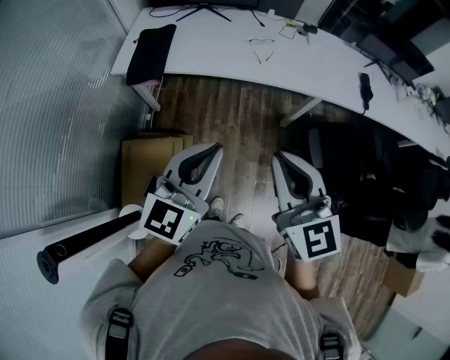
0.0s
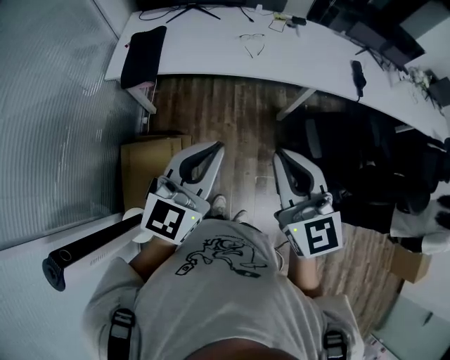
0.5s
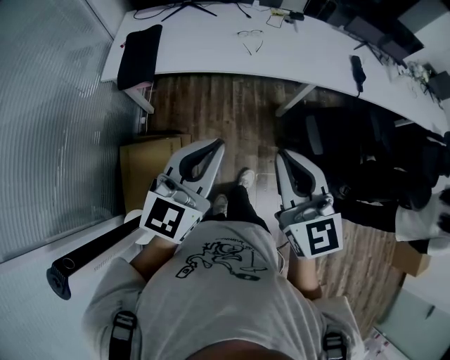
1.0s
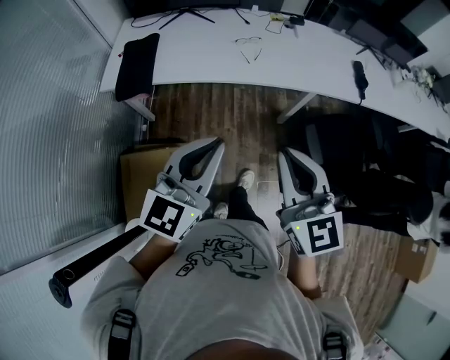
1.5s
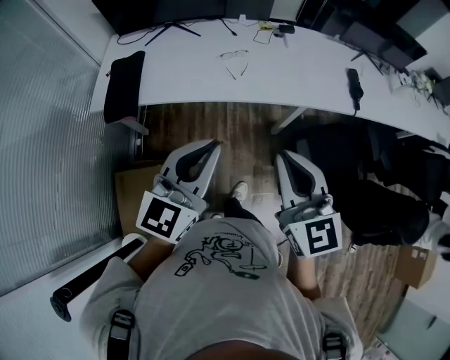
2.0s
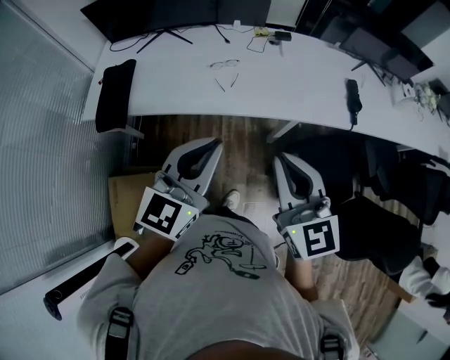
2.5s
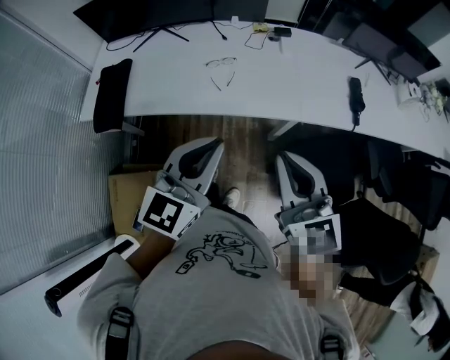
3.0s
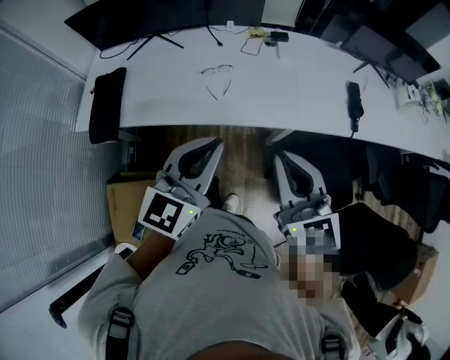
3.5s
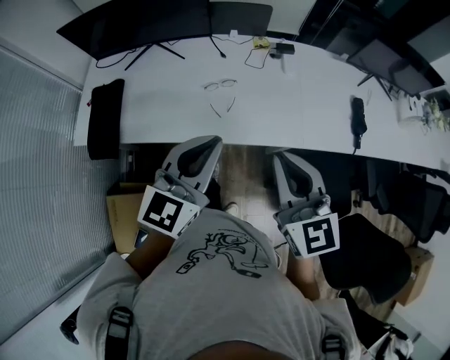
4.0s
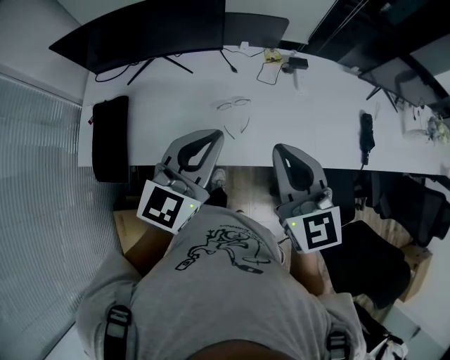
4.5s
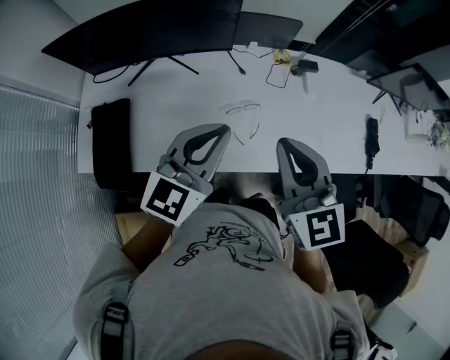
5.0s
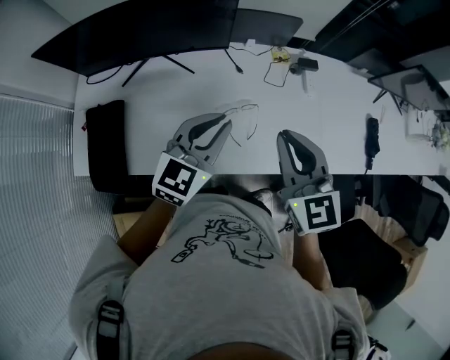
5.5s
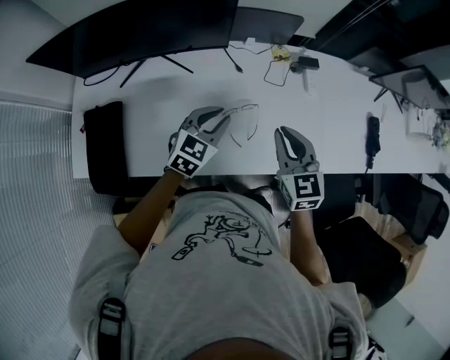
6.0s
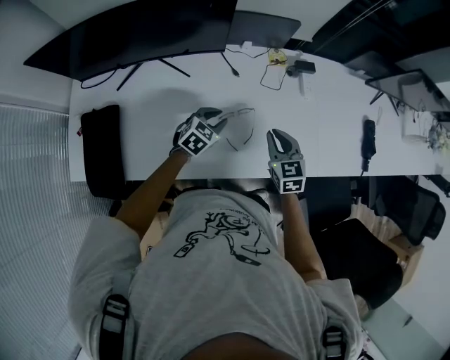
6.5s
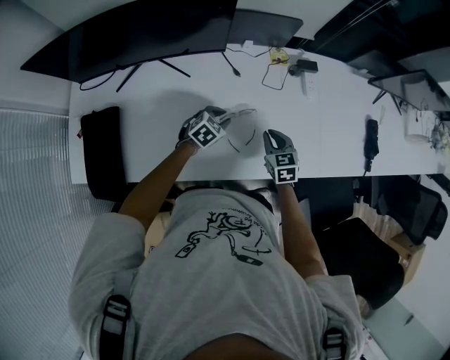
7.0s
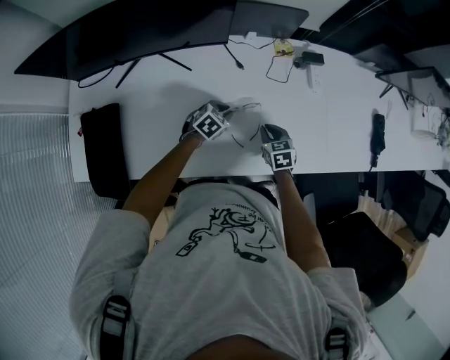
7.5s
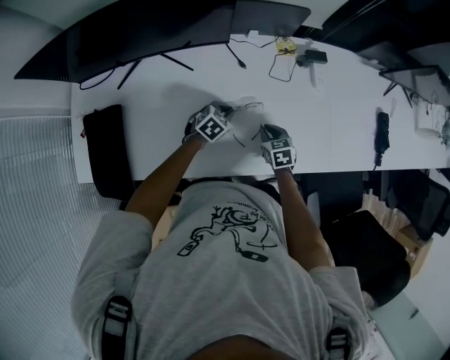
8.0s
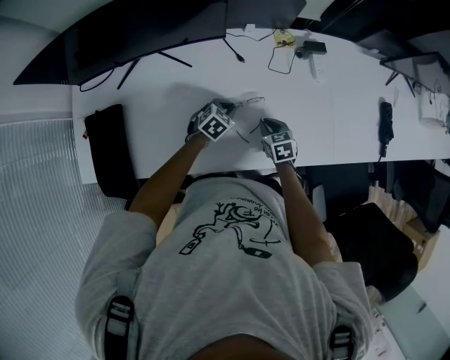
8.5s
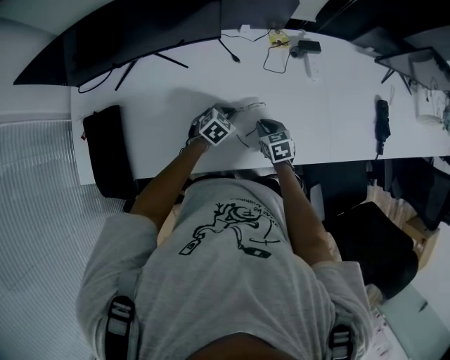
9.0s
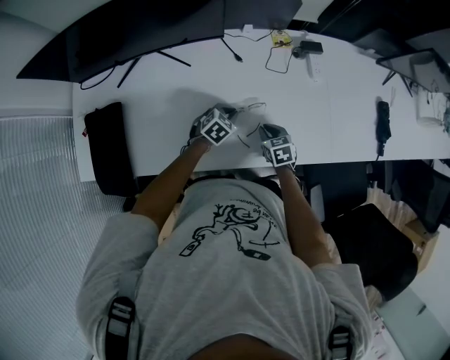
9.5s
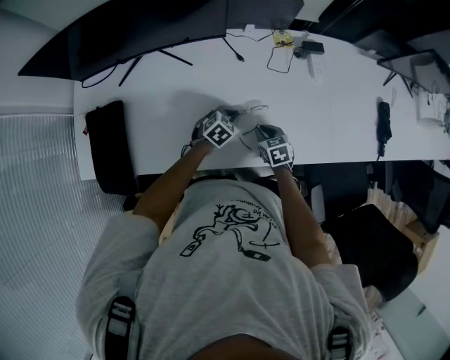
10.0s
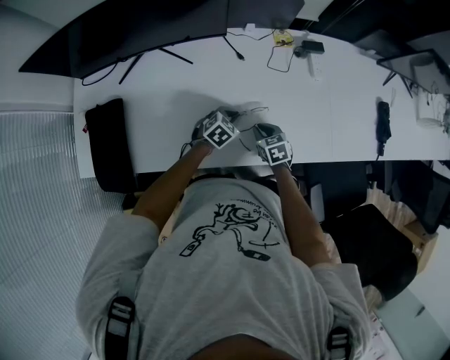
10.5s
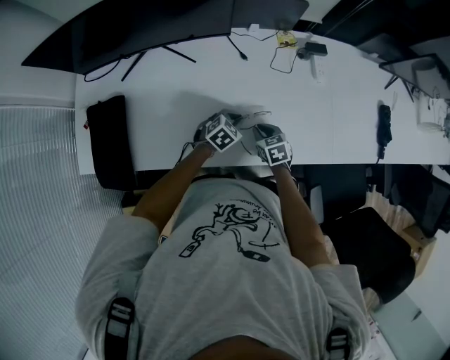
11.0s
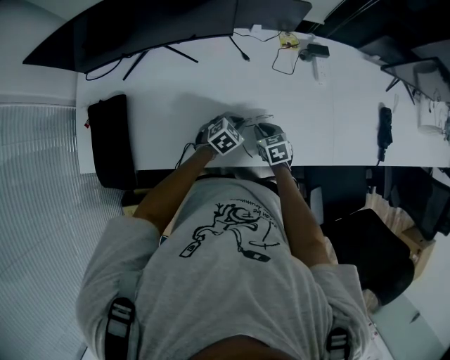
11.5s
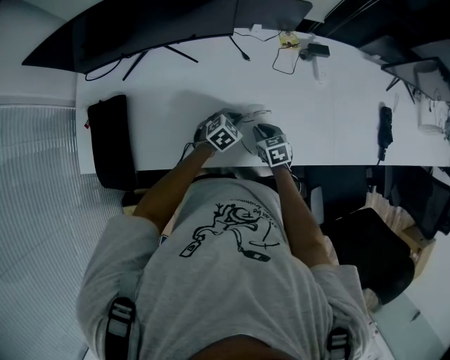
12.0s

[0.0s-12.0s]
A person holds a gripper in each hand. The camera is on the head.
0.0s to 2.0s: Both grippers move forward and to the right, roughly 20 cm.
2.0s to 4.0s: Both grippers travel together forward, some 25 cm.
4.0s to 6.0s: The two grippers go roughly 35 cm forward, downward and to the left. The left gripper swivels approximately 30 degrees.
6.0s to 8.0s: The grippers both shift downward by roughly 25 cm. The right gripper changes its angle by about 30 degrees. The left gripper rotates approximately 30 degrees.
8.0s to 10.0s: The right gripper ends up some 5 cm from where it was. Meanwhile the left gripper ends up about 5 cm from where it was.
10.0s to 12.0s: There are only small adjustments of the grippers.

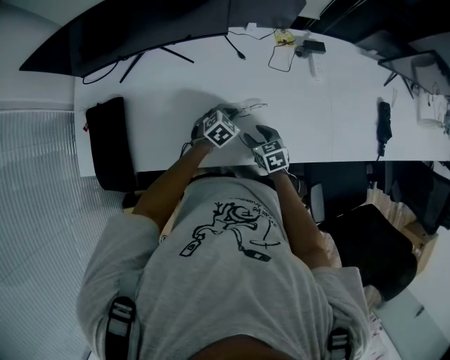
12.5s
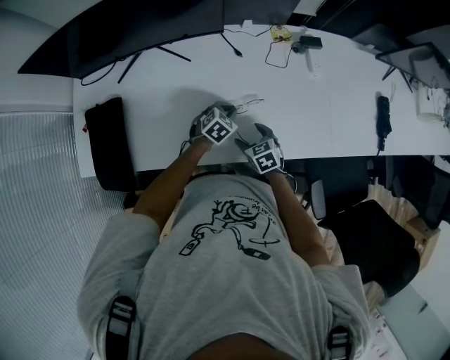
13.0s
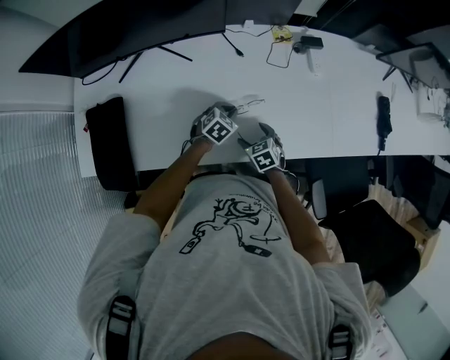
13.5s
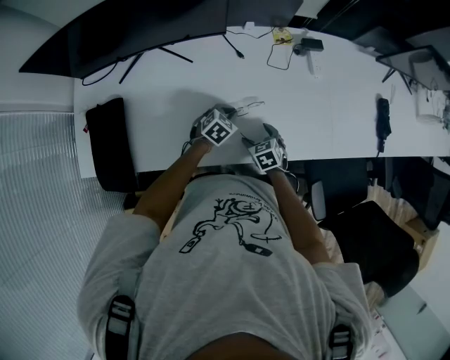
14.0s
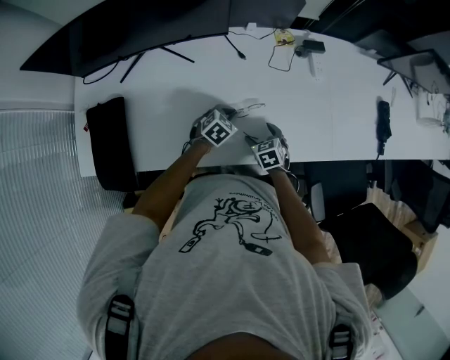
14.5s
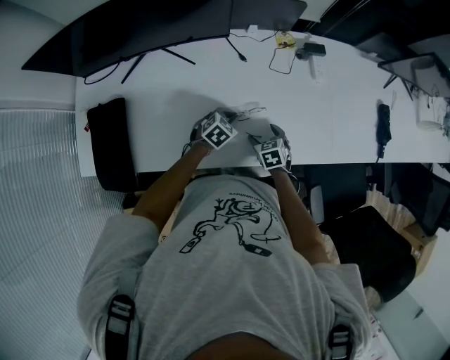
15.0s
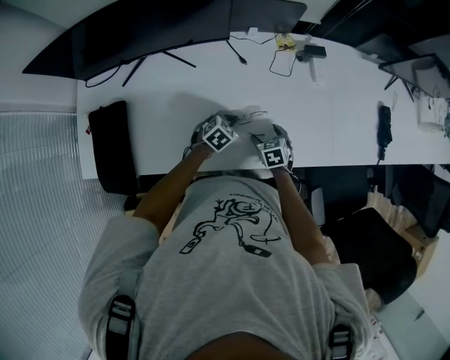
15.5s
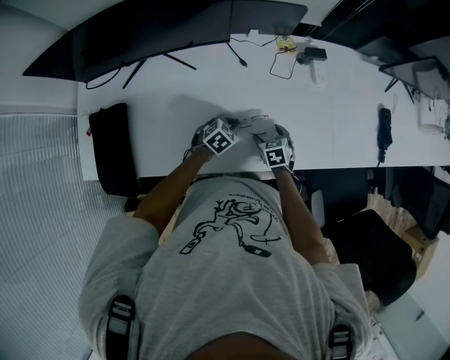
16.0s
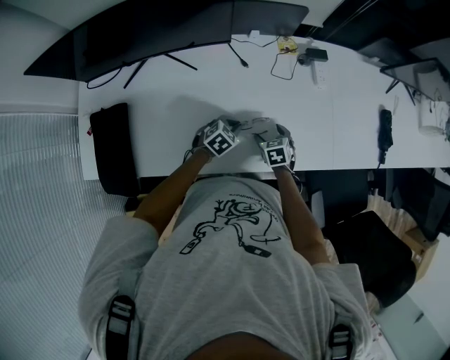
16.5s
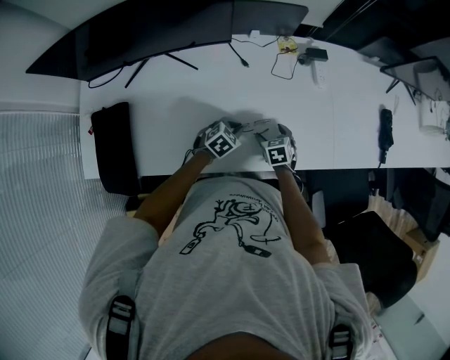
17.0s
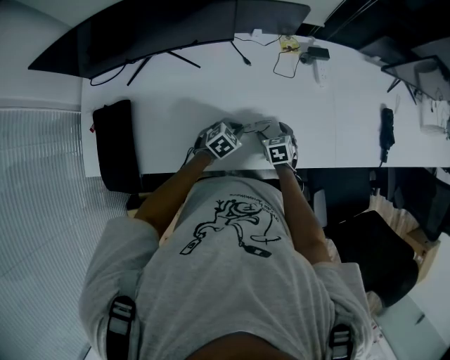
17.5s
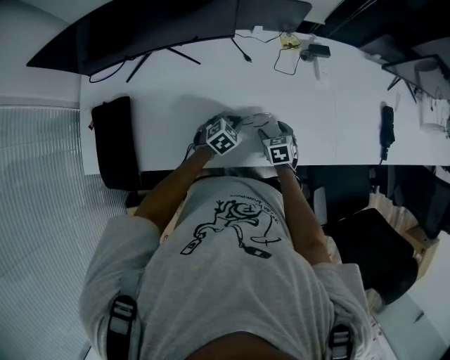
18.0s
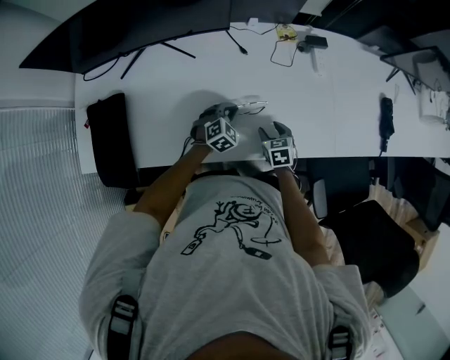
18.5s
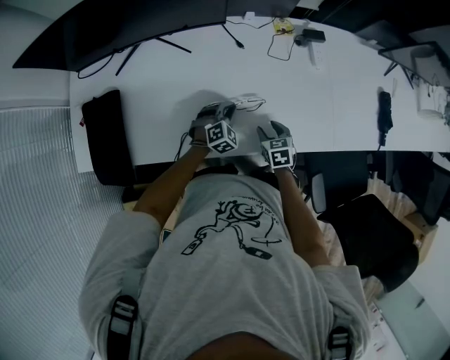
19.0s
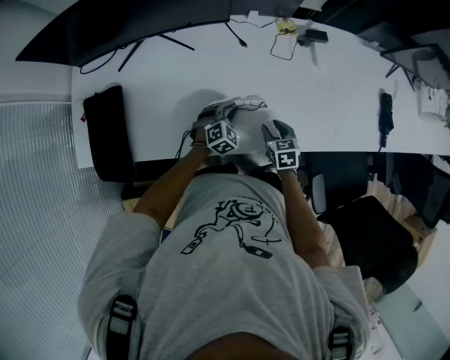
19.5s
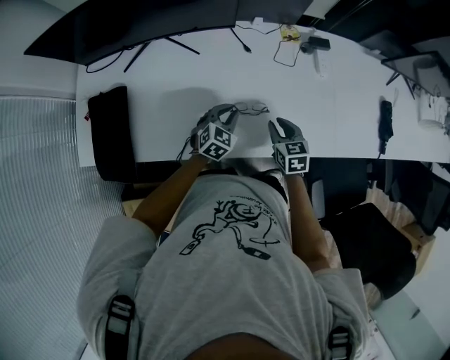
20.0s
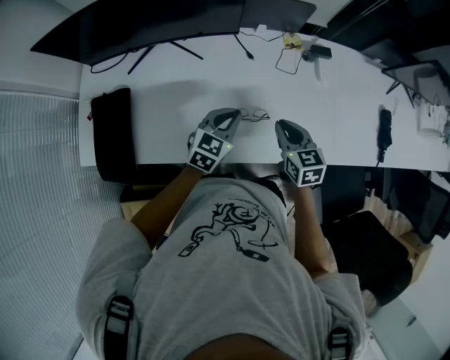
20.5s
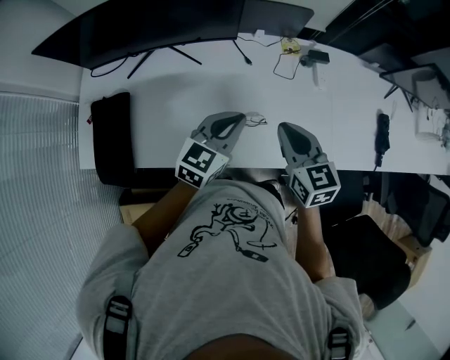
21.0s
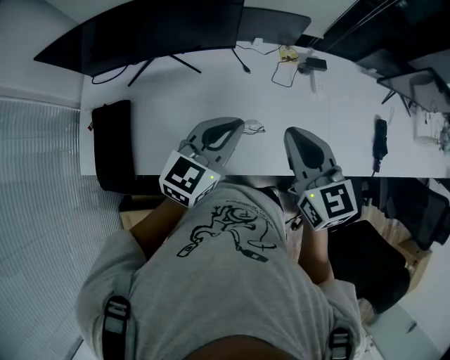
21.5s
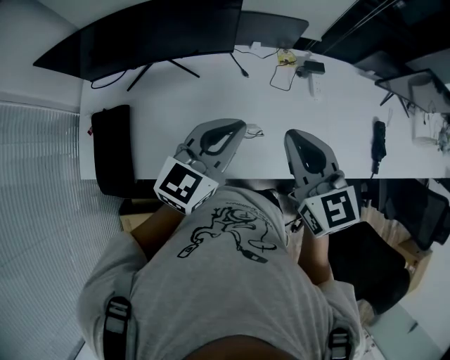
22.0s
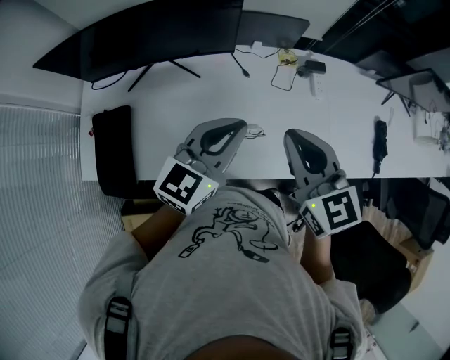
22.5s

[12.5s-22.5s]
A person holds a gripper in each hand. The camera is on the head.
12.5s to 14.5s: The right gripper opens.
14.5s to 16.5s: The right gripper shifts by roughly 5 cm.
16.5s to 18.5s: The left gripper swivels about 20 degrees; the right gripper closes.
18.5s to 20.5s: The grippers both shift upward by about 15 cm. The right gripper closes up, while the left gripper changes its angle by about 30 degrees.
20.5s to 22.5s: Both grippers travel together upward, roughly 20 cm. The left gripper swivels some 20 degrees.

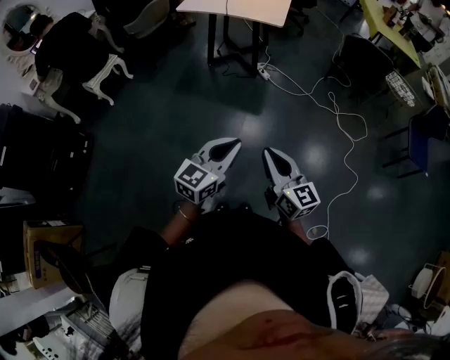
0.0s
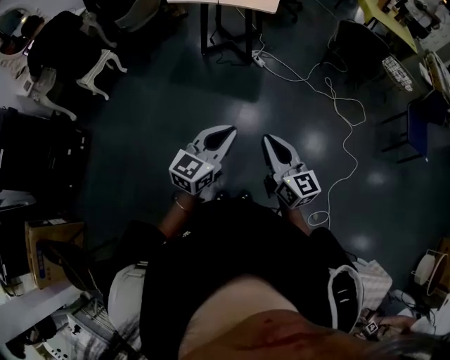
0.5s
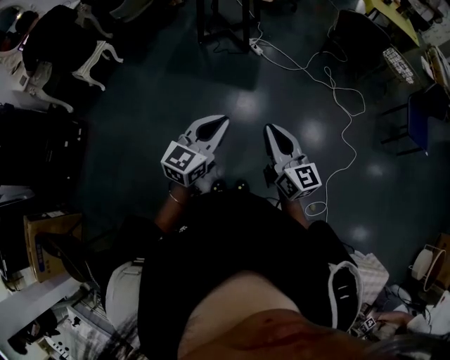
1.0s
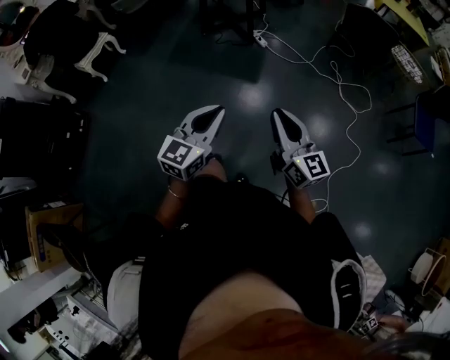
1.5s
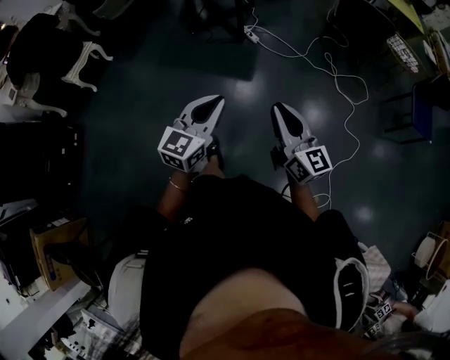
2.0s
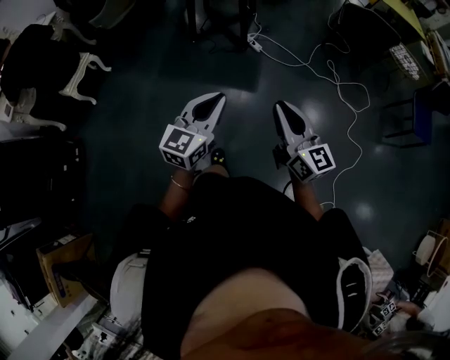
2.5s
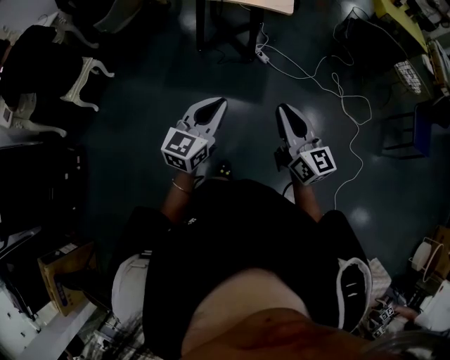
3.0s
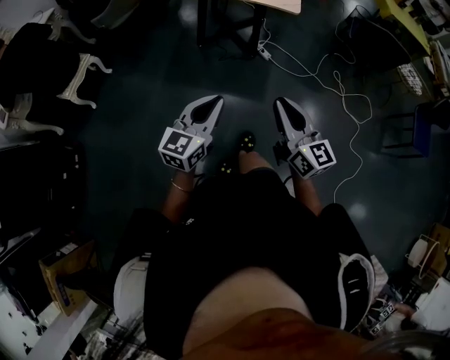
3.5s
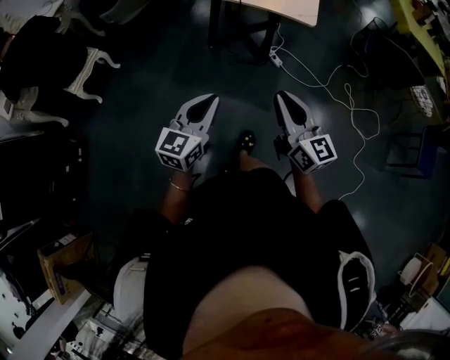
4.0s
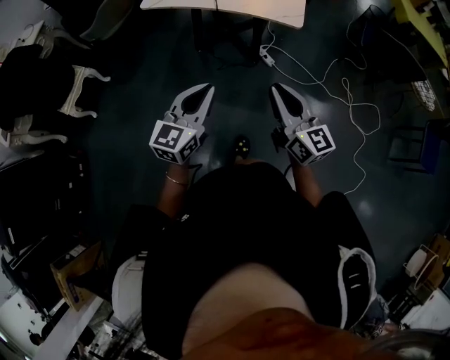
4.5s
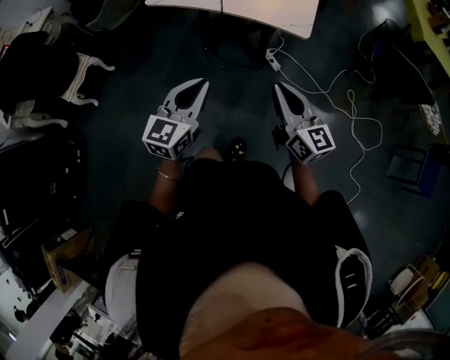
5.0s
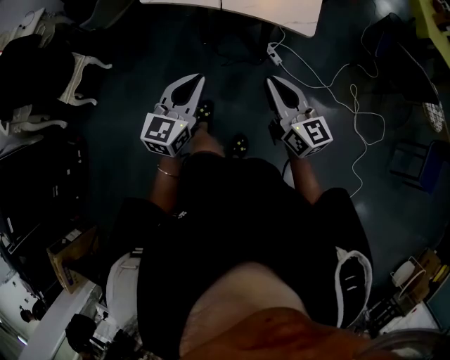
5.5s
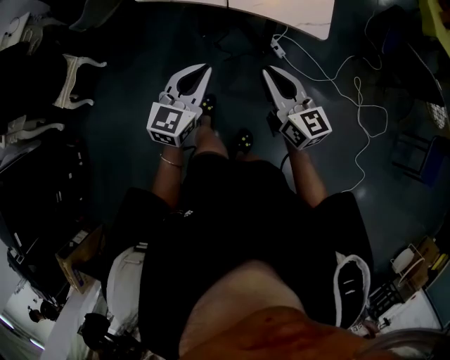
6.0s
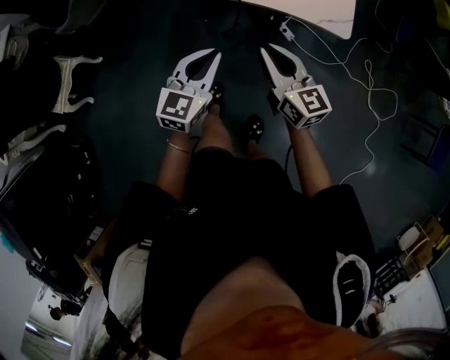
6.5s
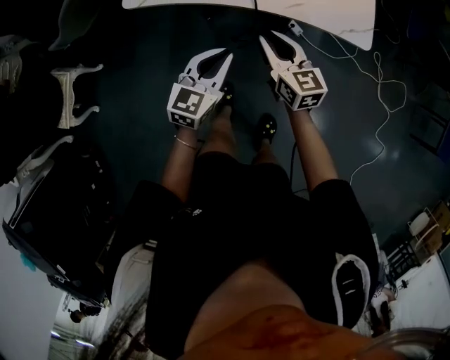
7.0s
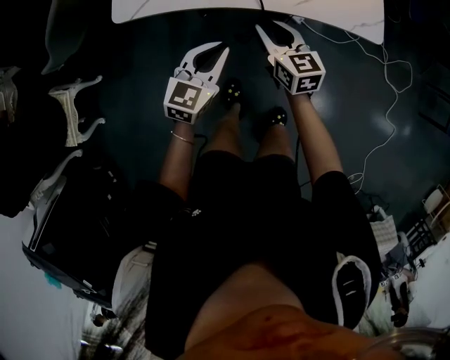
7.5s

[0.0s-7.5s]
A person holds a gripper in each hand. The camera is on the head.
0.0s to 2.0s: The left gripper heads forward, covering about 10 cm. The right gripper is displaced forward and to the right by about 10 cm.
2.0s to 4.0s: The grippers both shift forward and to the left by about 30 cm.
4.0s to 5.5s: Both grippers travel together forward, approximately 20 cm.
5.5s to 7.5s: The right gripper travels forward, downward and to the left by about 40 cm, and turns by roughly 30 degrees, while the left gripper moves forward and downward, roughly 30 cm, and turns by approximately 30 degrees.
